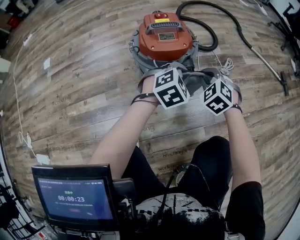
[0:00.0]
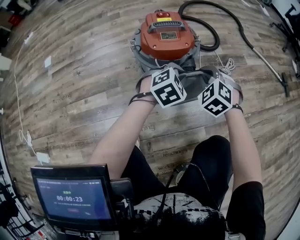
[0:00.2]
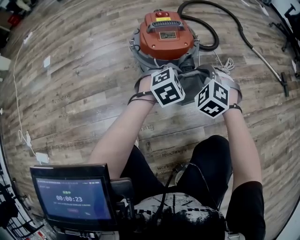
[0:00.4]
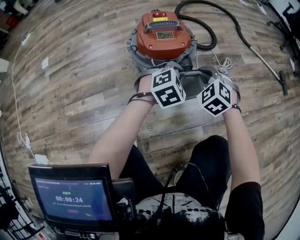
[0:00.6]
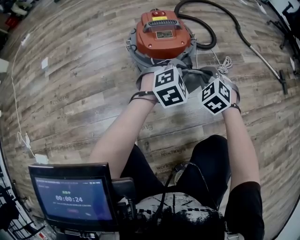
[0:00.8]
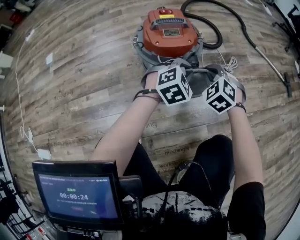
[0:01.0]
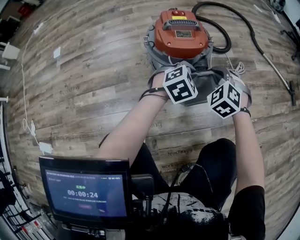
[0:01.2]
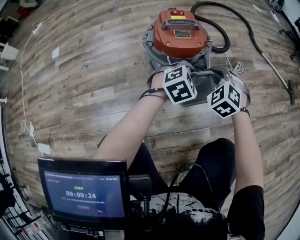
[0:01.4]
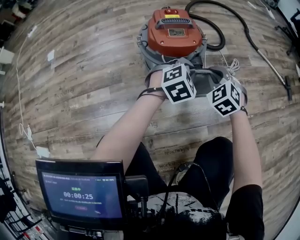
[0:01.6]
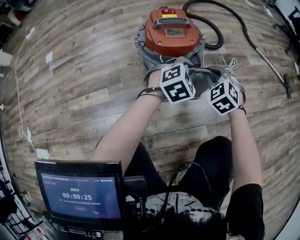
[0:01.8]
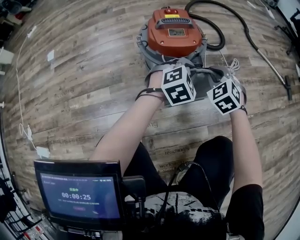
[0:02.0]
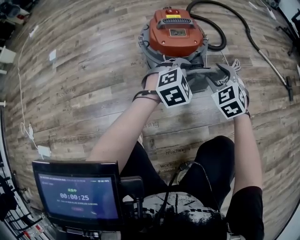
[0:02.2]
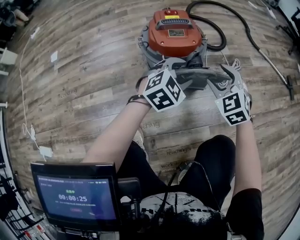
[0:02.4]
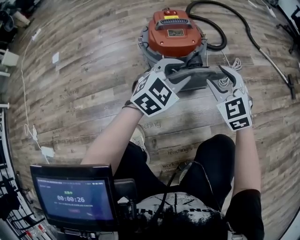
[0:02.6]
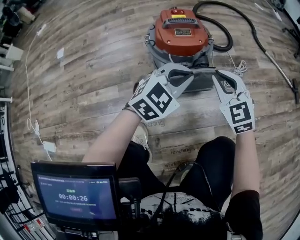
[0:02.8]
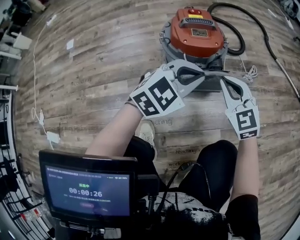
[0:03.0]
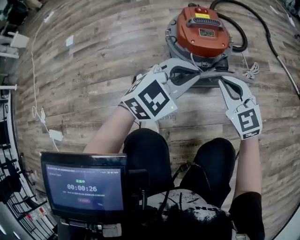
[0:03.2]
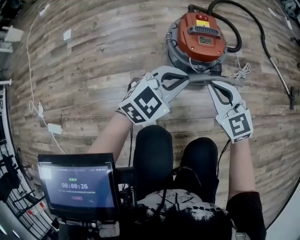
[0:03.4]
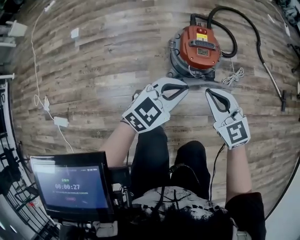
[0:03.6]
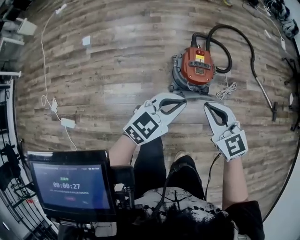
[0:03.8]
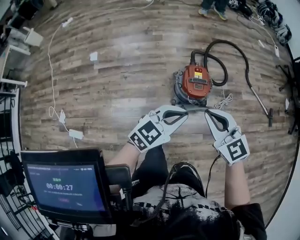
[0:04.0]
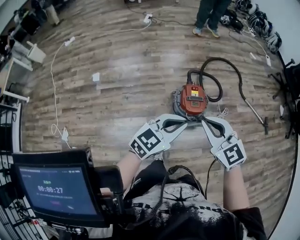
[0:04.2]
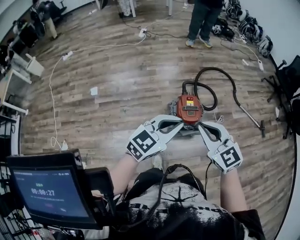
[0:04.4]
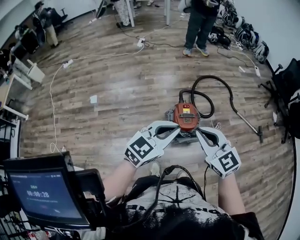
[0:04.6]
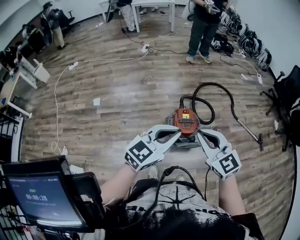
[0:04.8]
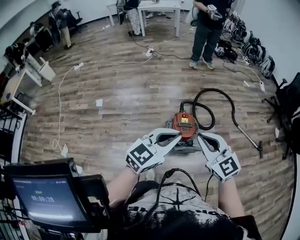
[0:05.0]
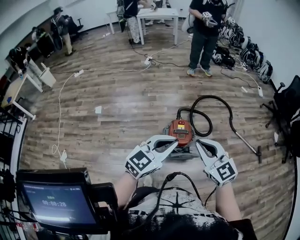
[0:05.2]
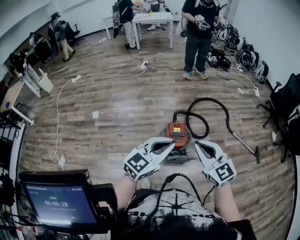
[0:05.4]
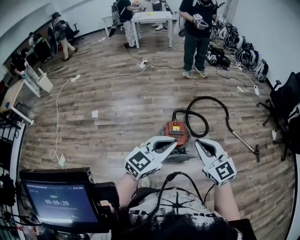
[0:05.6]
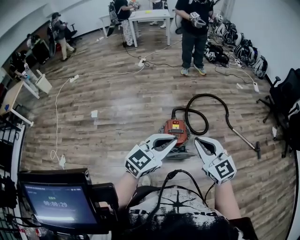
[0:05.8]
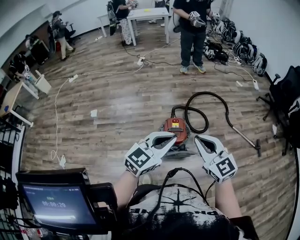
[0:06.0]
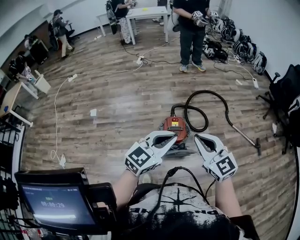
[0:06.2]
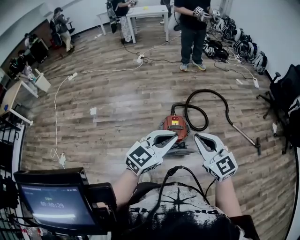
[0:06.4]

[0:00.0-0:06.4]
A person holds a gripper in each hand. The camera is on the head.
0:00.0 to 0:01.6: The grippers make only small movements.
0:01.6 to 0:03.2: The grippers both shift upward, backward and to the left by about 15 cm. The left gripper turns by some 20 degrees, and opens and closes again. Meanwhile the right gripper changes its angle by roughly 30 degrees, and opens, then closes again.
0:03.2 to 0:04.8: The two grippers go roughly 60 cm upward. The left gripper turns by roughly 20 degrees.
0:04.8 to 0:06.4: Both grippers travel together to the right, about 10 cm.

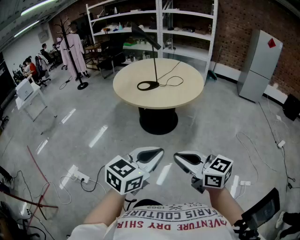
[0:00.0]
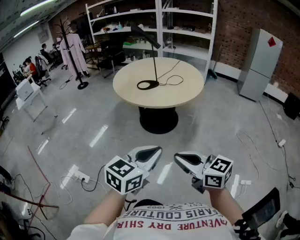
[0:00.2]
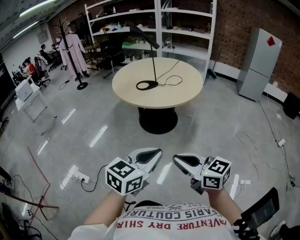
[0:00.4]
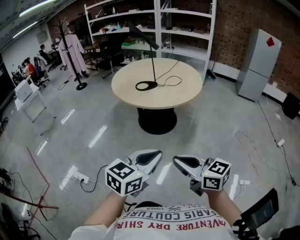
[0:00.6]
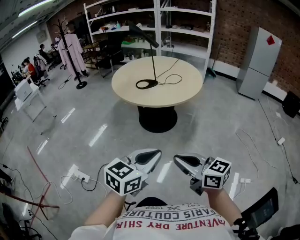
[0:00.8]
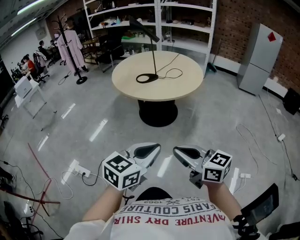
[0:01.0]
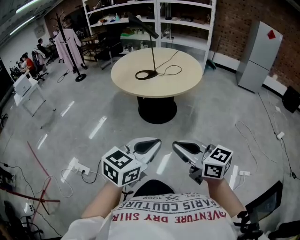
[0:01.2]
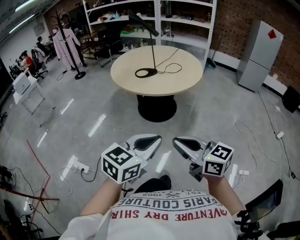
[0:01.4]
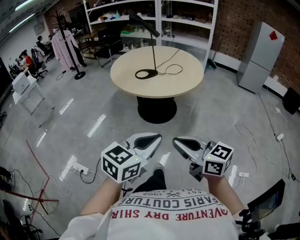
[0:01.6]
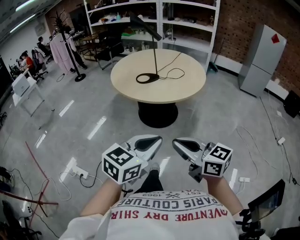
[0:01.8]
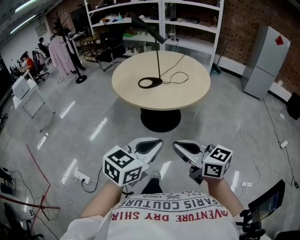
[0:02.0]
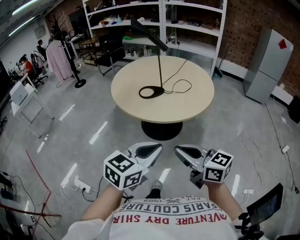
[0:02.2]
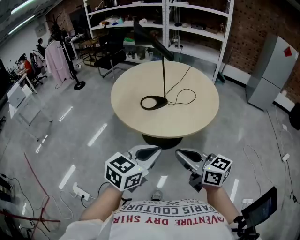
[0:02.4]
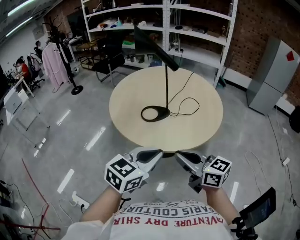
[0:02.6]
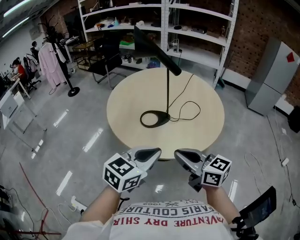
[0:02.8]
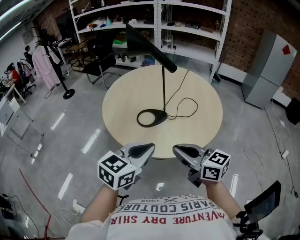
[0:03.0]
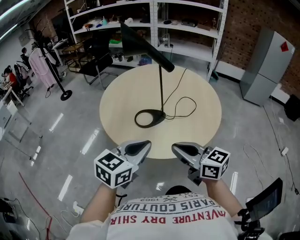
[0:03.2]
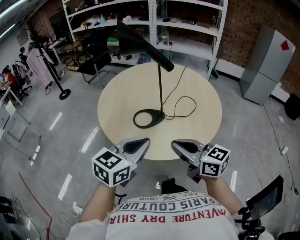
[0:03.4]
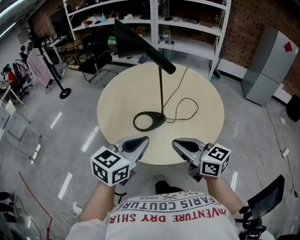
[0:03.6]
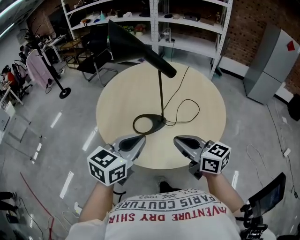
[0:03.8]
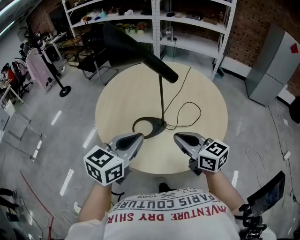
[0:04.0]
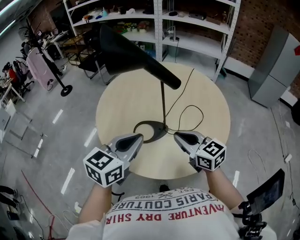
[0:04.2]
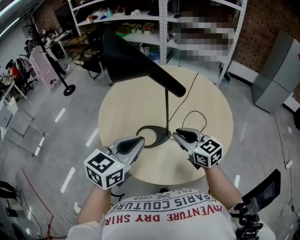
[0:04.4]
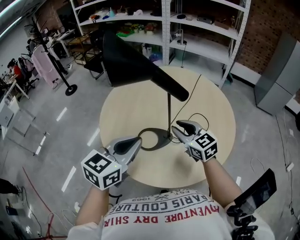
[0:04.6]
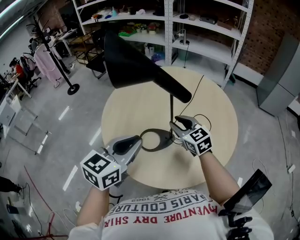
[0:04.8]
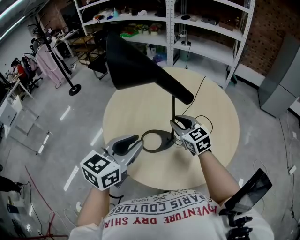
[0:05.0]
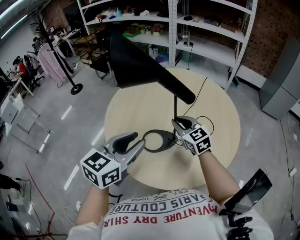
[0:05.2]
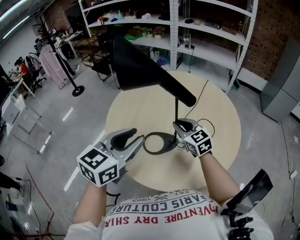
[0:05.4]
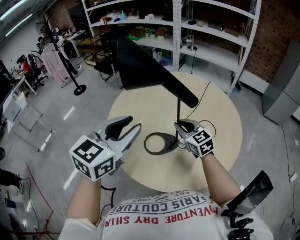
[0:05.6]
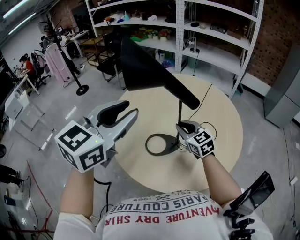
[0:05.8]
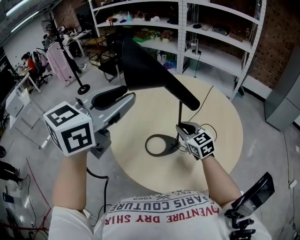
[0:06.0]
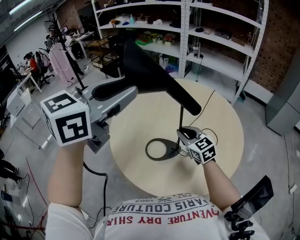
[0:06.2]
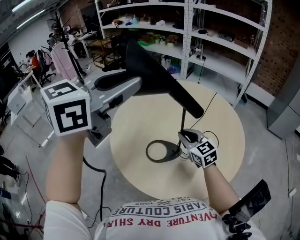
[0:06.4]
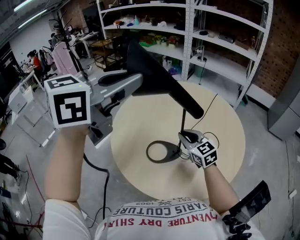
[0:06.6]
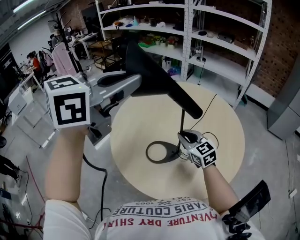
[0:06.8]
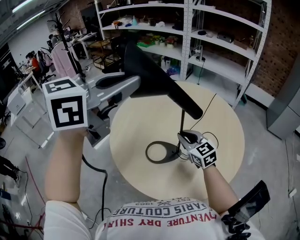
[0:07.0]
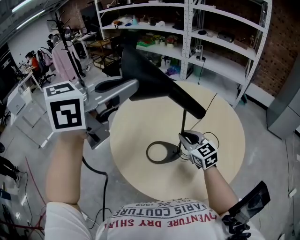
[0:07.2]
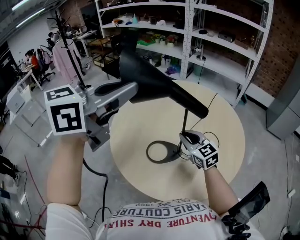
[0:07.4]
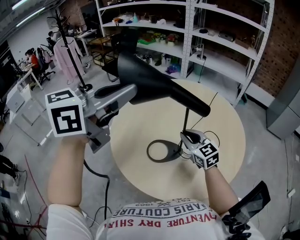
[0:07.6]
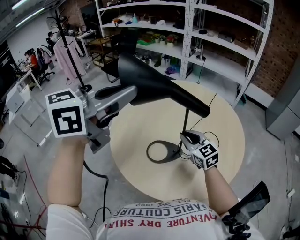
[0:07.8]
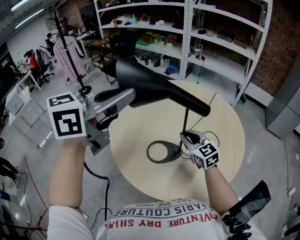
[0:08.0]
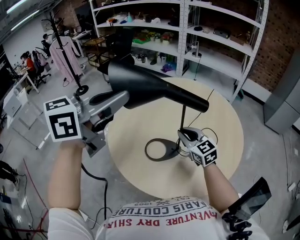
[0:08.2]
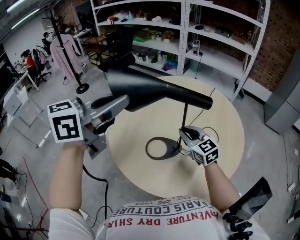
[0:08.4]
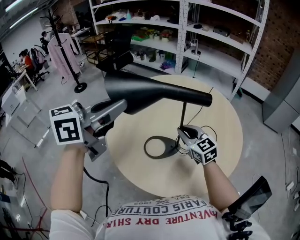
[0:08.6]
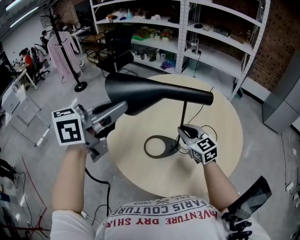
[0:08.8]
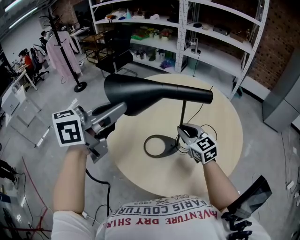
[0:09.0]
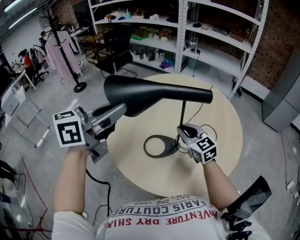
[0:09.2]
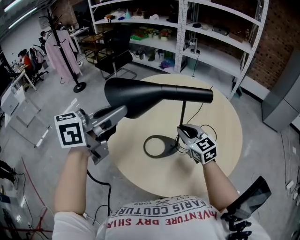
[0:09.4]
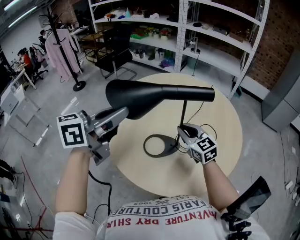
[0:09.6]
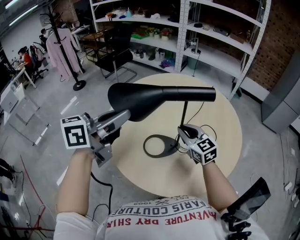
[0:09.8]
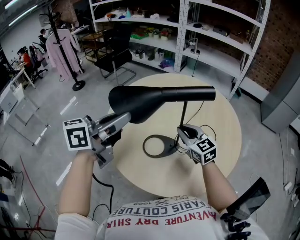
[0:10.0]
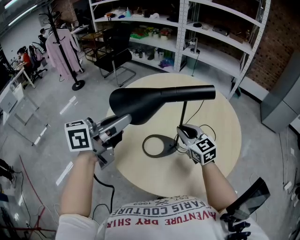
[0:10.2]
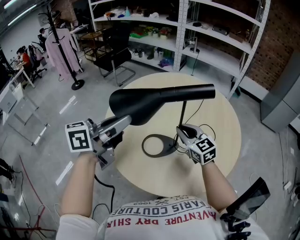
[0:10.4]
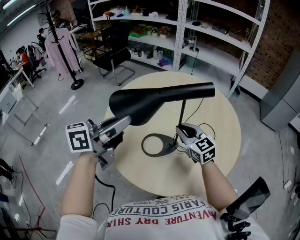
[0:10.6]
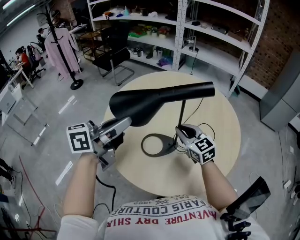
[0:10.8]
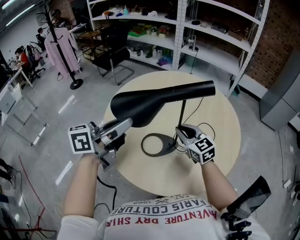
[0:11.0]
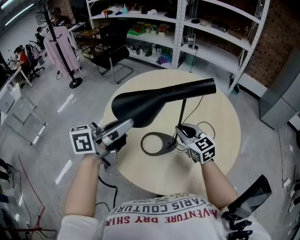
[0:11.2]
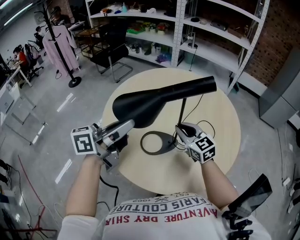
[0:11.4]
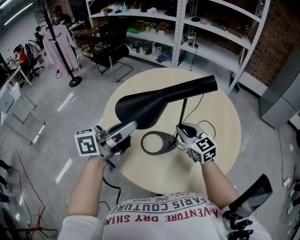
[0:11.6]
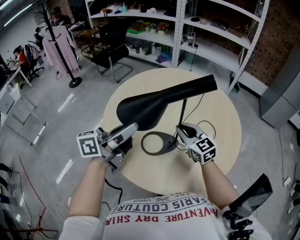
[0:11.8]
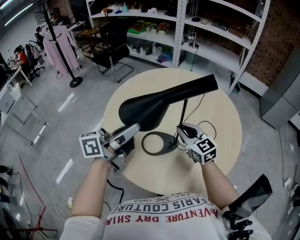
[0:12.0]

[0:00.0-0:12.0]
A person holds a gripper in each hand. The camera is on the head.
0:00.0 to 0:01.6: There are only small adjustments of the grippers.
0:01.6 to 0:03.0: Both grippers are carried forward, roughly 40 cm.
0:03.0 to 0:04.4: Both grippers move forward, roughly 20 cm.
0:04.4 to 0:06.0: The left gripper moves upward and forward, approximately 20 cm, and opens its fingers. Meanwhile the right gripper is displaced forward by some 10 cm.
0:06.0 to 0:07.6: The left gripper closes.
0:07.6 to 0:09.0: The left gripper goes some 10 cm downward.
0:09.0 to 0:10.4: The left gripper goes approximately 5 cm downward.
0:10.4 to 0:12.0: The left gripper shifts by some 5 cm.

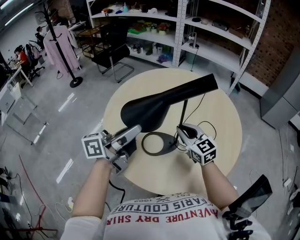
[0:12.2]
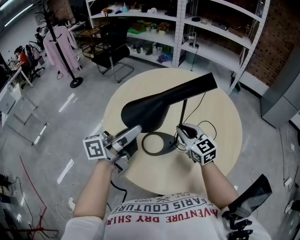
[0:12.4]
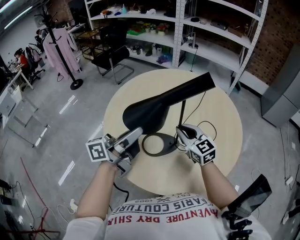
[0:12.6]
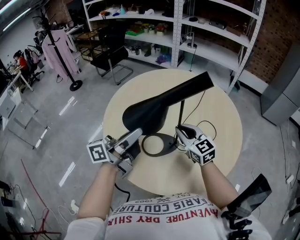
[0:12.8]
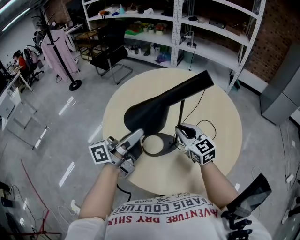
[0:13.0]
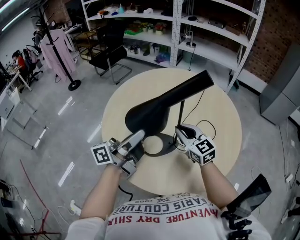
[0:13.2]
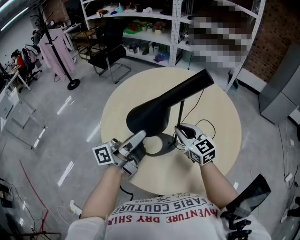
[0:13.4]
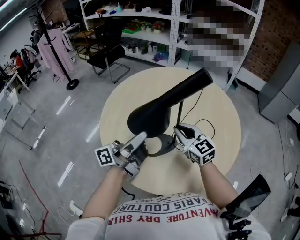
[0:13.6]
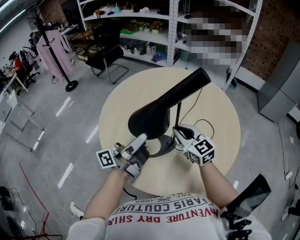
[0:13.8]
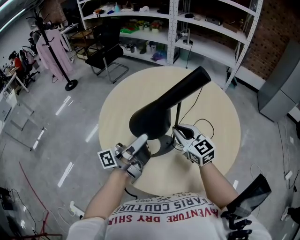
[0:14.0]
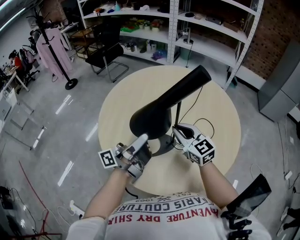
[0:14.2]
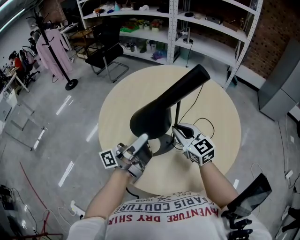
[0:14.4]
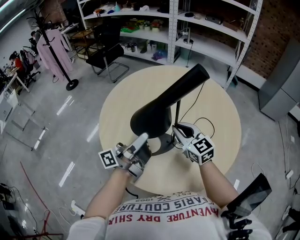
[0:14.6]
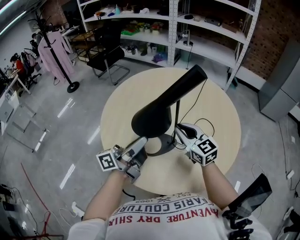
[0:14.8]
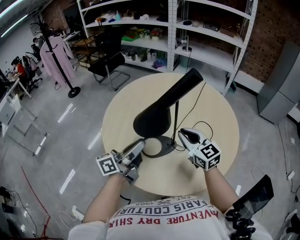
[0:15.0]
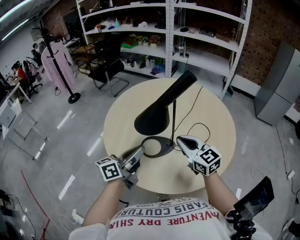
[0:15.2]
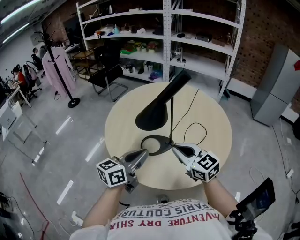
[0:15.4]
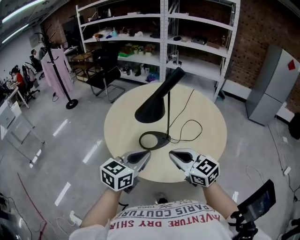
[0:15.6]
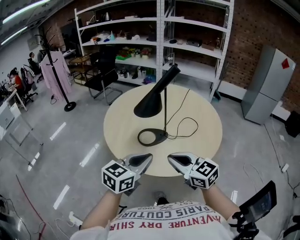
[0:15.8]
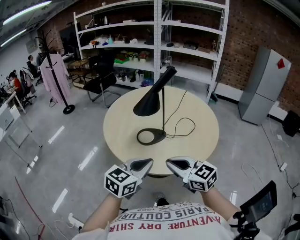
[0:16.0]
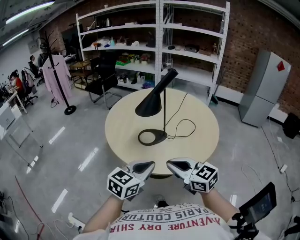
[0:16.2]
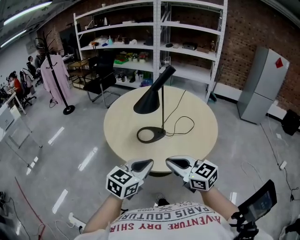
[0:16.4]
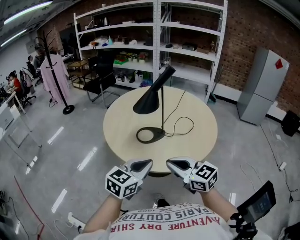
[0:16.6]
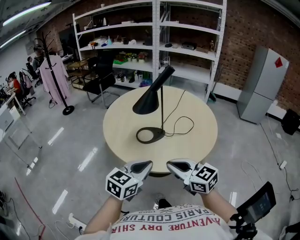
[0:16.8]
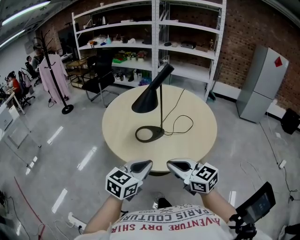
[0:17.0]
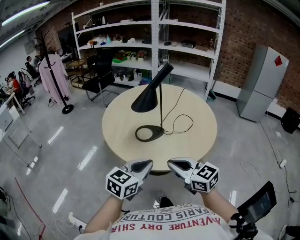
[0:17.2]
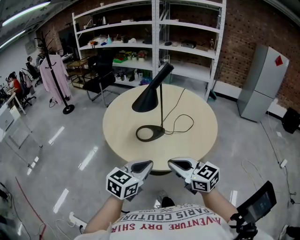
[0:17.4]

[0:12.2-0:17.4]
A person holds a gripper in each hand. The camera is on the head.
0:12.2 to 0:14.0: The left gripper ends up approximately 5 cm from where it was, and swivels roughly 30 degrees.
0:14.0 to 0:15.6: The right gripper goes roughly 20 cm backward. Meanwhile the left gripper shifts about 15 cm backward, and points its fingers some 50 degrees further downward.
0:15.6 to 0:17.4: Both grippers travel together backward, roughly 10 cm.
